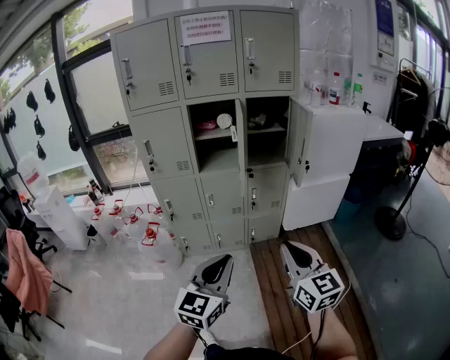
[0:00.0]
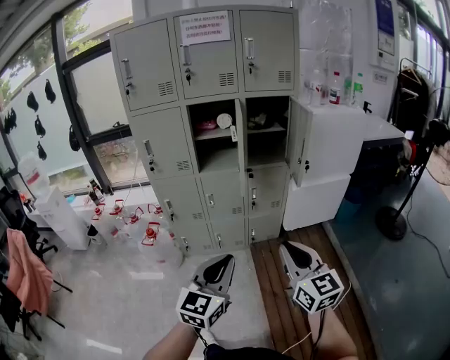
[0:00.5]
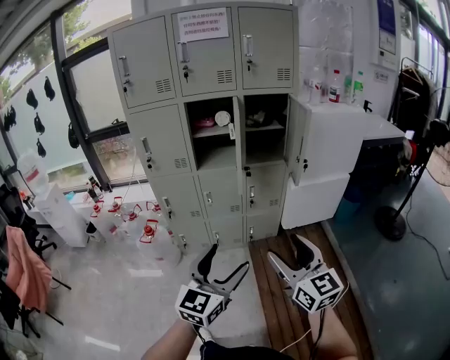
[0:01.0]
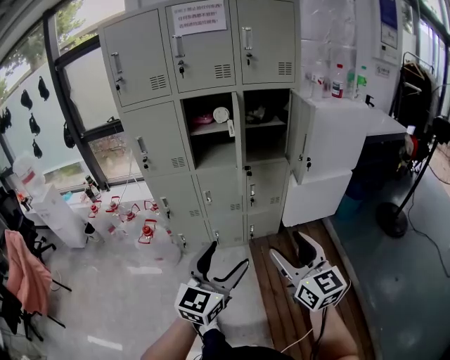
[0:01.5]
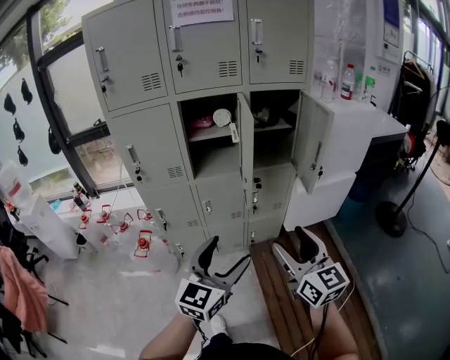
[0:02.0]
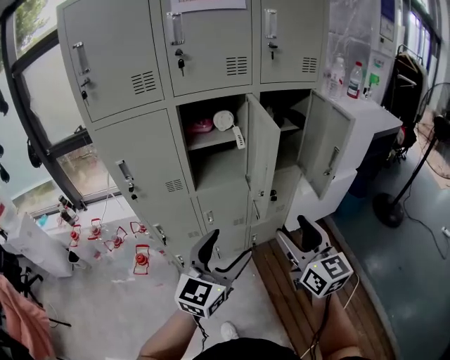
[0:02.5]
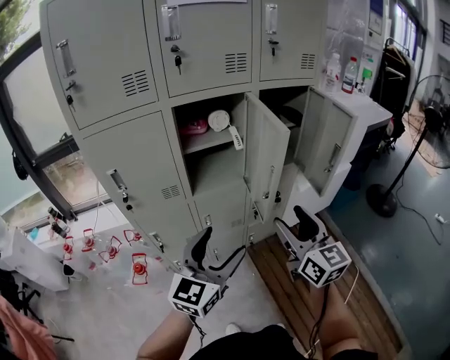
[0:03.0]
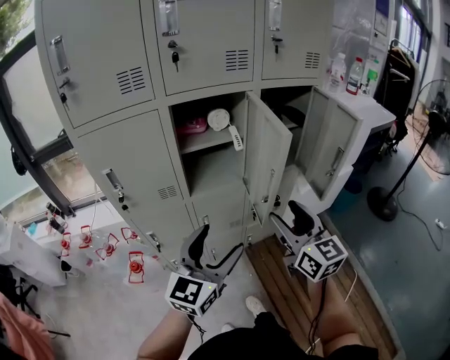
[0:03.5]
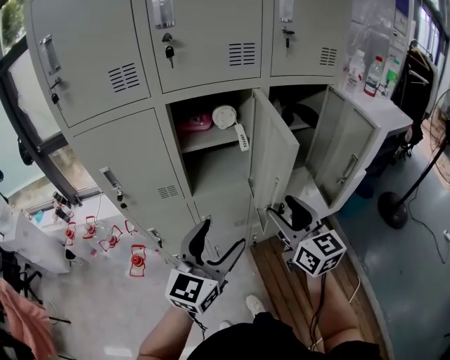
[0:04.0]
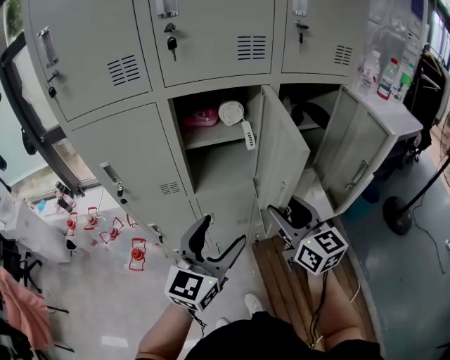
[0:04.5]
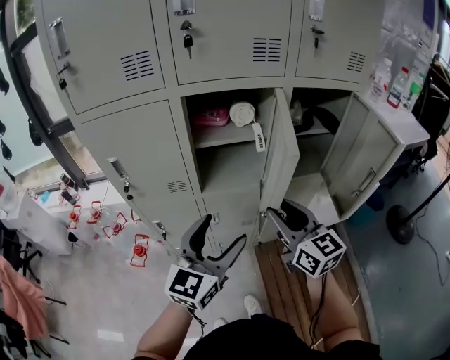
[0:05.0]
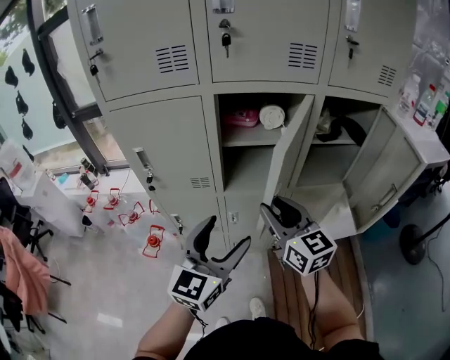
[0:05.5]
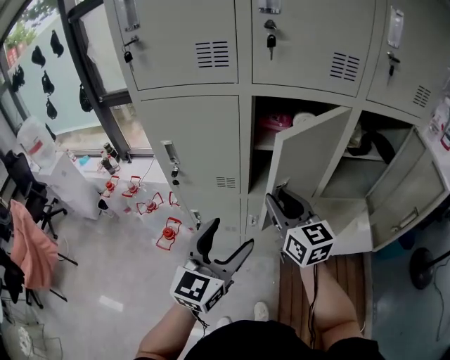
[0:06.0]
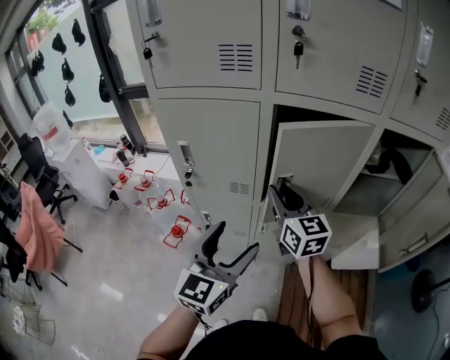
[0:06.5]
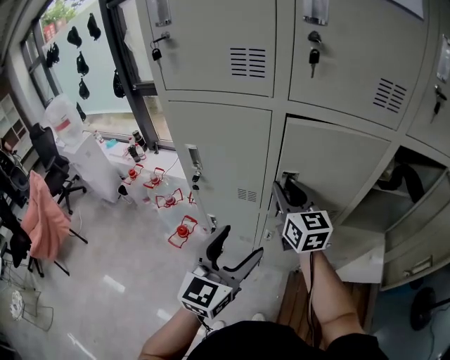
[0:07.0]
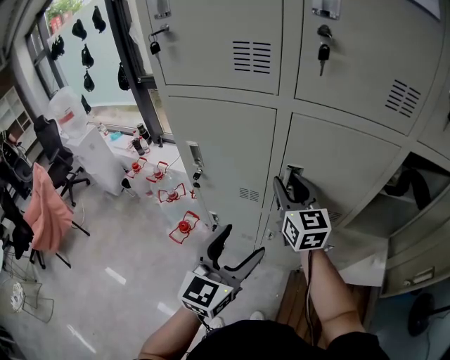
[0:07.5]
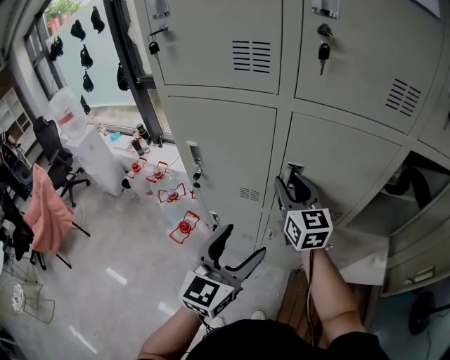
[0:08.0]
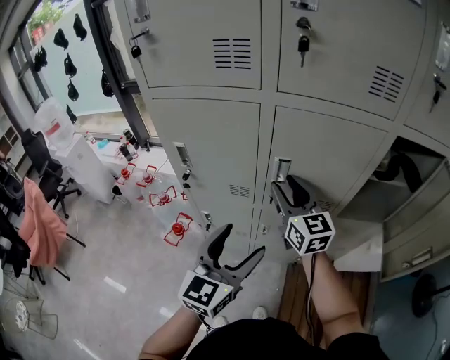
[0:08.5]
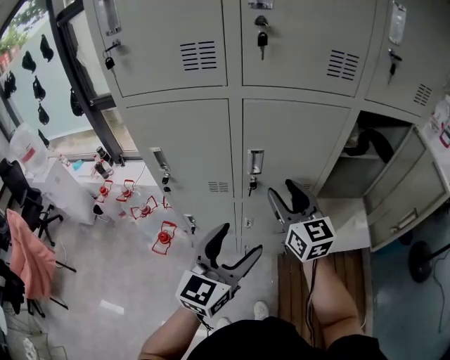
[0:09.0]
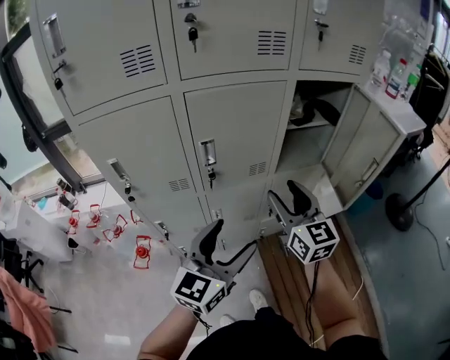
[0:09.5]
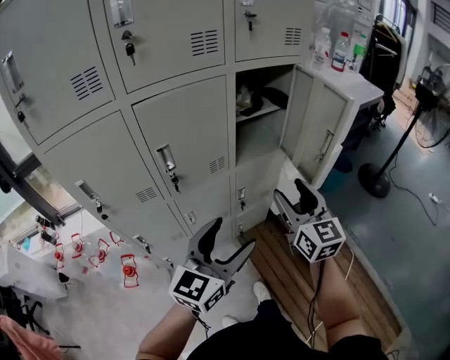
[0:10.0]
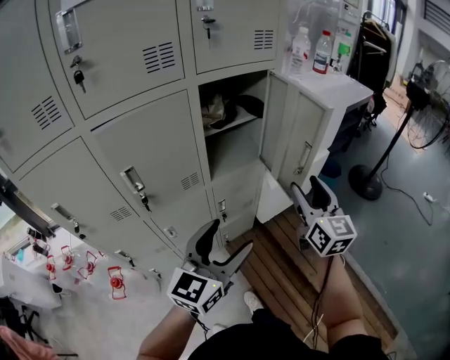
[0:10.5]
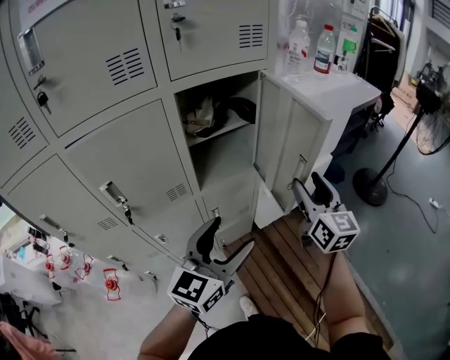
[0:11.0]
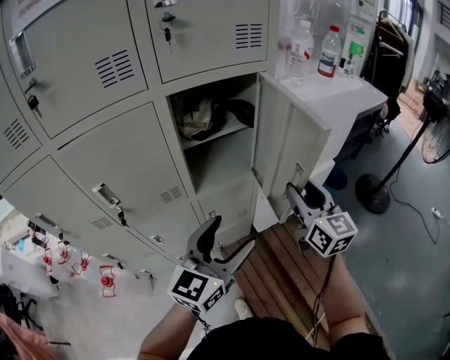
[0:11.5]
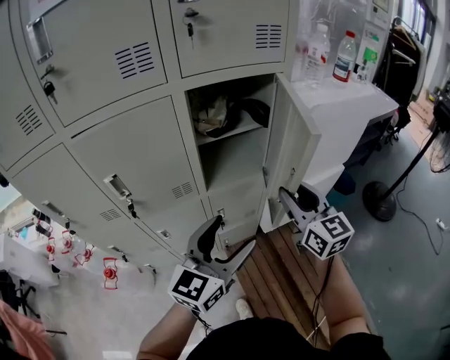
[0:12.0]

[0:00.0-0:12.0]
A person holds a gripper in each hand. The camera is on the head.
0:00.0 to 0:02.0: The two grippers go approximately 15 cm forward. The left gripper opens its fingers; the right gripper opens its fingers.
0:02.0 to 0:04.0: The grippers both shift forward and to the left by some 25 cm.
0:04.0 to 0:06.0: The right gripper shifts some 20 cm to the left and forward, and closes. Meanwhile the left gripper goes some 10 cm to the left.
0:06.0 to 0:08.0: The right gripper is displaced forward by approximately 15 cm. Meanwhile the left gripper goes roughly 5 cm forward.
0:08.0 to 0:10.0: The left gripper ends up about 20 cm from where it was, and swivels approximately 50 degrees; the right gripper shifts by some 40 cm, swivels approximately 40 degrees, and opens its fingers.
0:10.0 to 0:12.0: The grippers both shift forward and to the right by roughly 20 cm. The right gripper closes up.

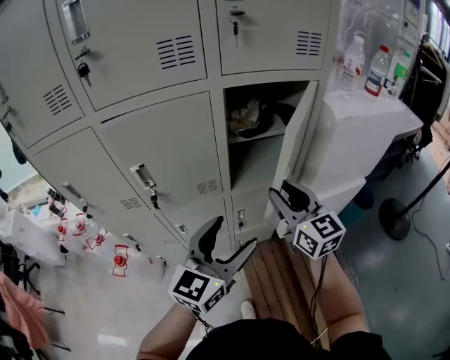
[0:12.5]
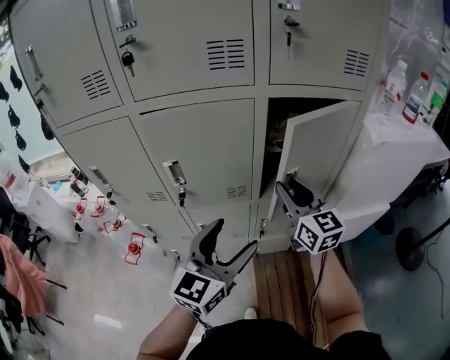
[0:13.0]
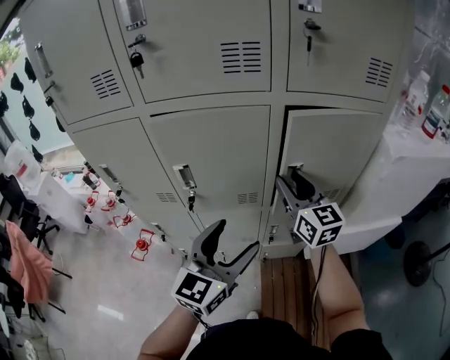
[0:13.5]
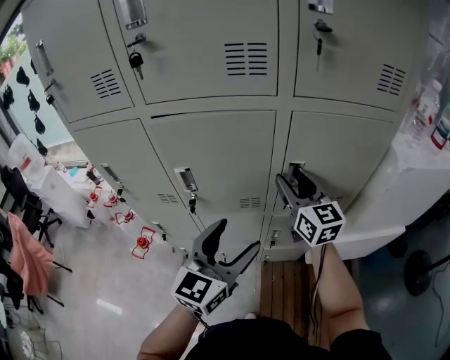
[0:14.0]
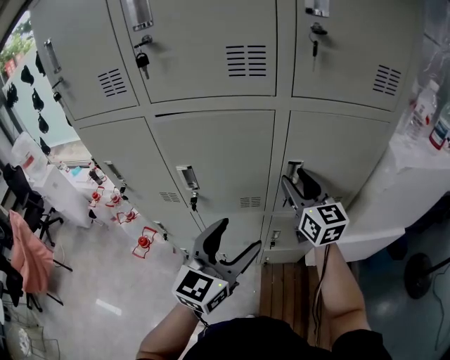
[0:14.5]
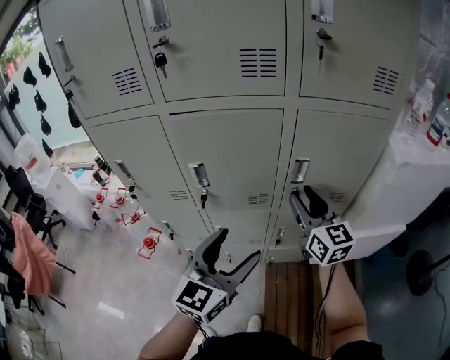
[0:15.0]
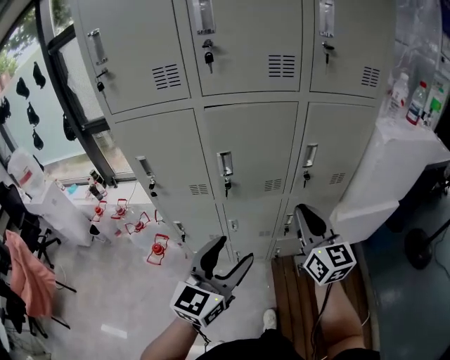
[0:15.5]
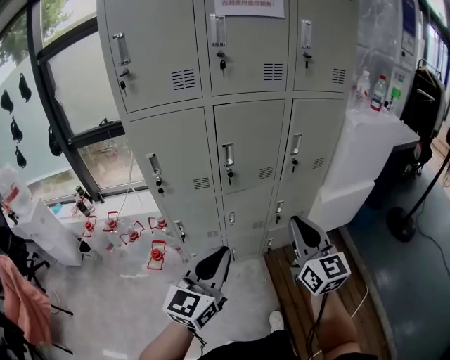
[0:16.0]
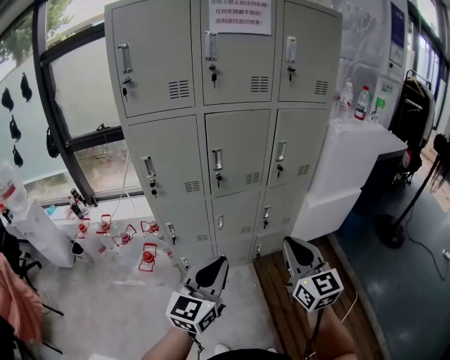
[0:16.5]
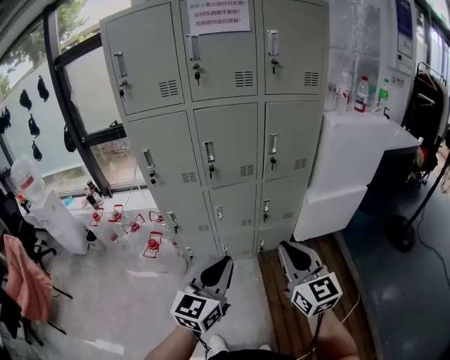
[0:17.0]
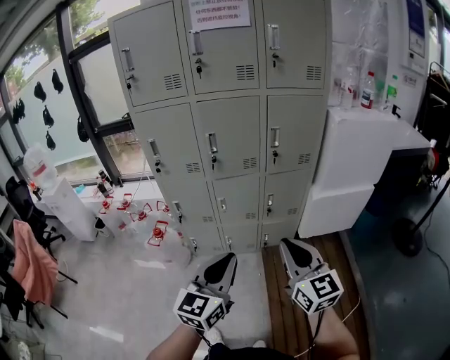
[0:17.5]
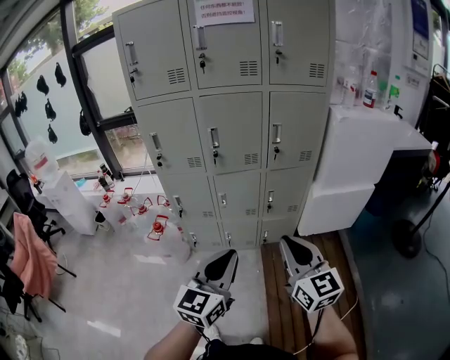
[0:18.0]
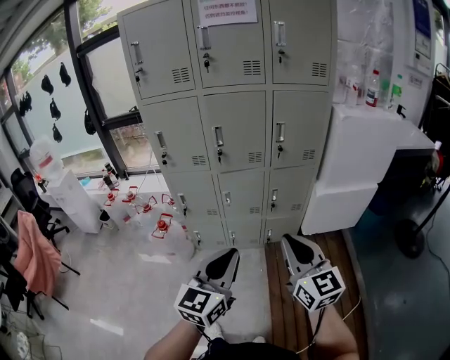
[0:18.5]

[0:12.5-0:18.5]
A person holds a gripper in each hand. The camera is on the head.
0:12.5 to 0:14.5: The left gripper goes some 10 cm to the left and forward; the right gripper goes approximately 15 cm forward and to the left.
0:14.5 to 0:16.5: The right gripper heads backward, covering approximately 50 cm, and closes its fingers; the left gripper heads backward and to the left, covering approximately 35 cm, and closes.
0:16.5 to 0:18.5: The grippers both shift to the right and backward by approximately 15 cm.

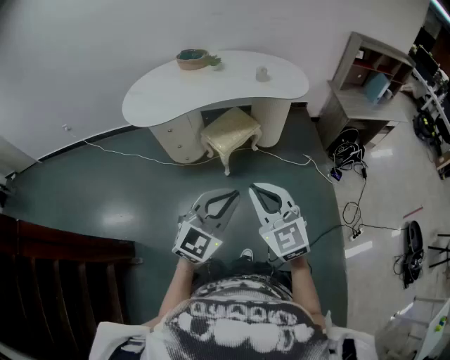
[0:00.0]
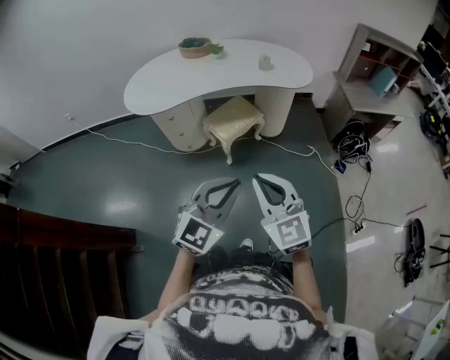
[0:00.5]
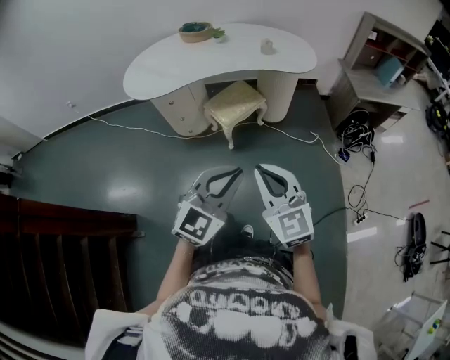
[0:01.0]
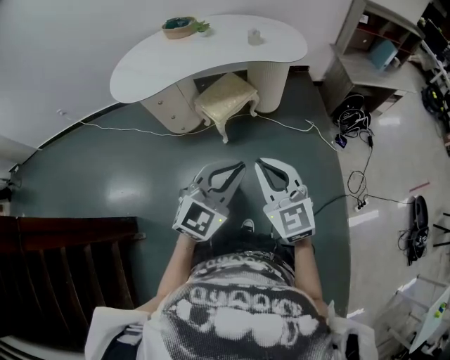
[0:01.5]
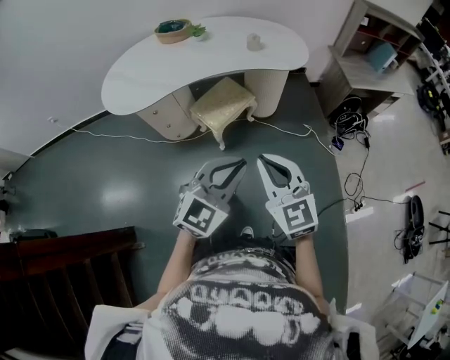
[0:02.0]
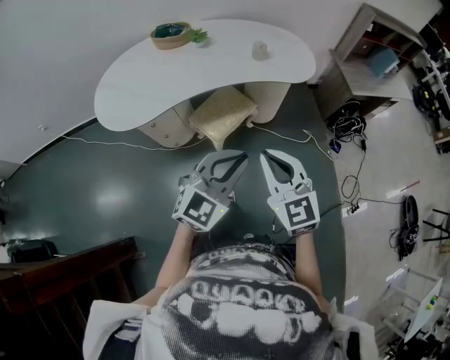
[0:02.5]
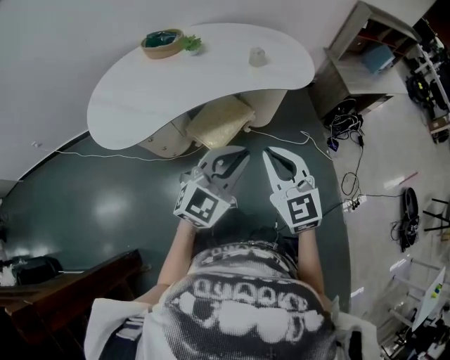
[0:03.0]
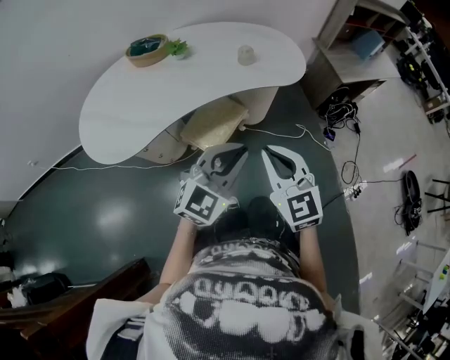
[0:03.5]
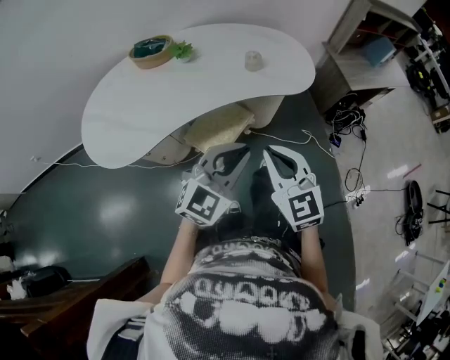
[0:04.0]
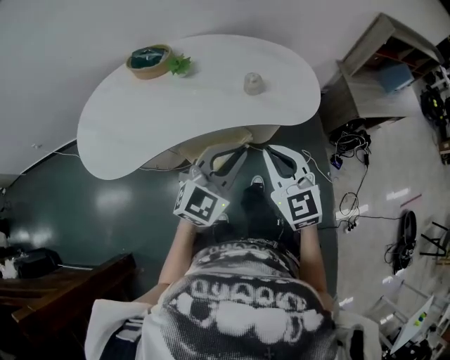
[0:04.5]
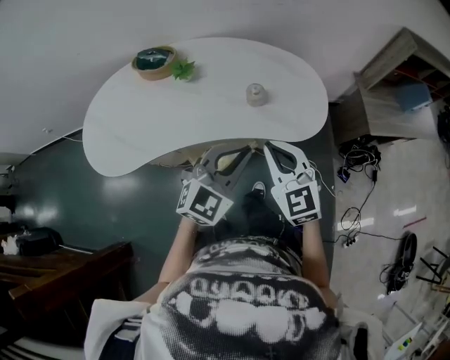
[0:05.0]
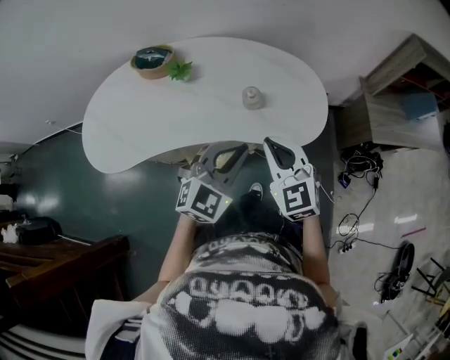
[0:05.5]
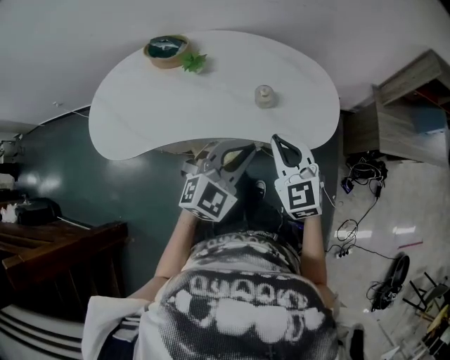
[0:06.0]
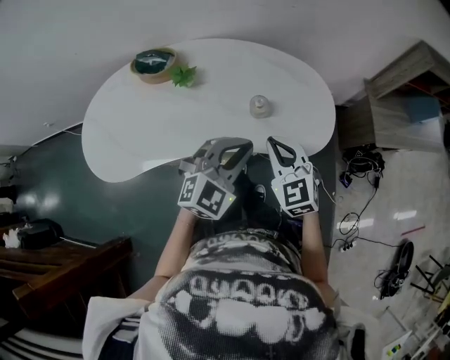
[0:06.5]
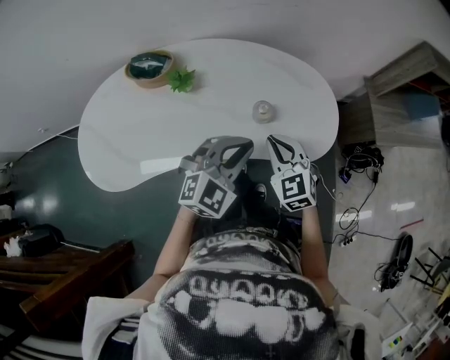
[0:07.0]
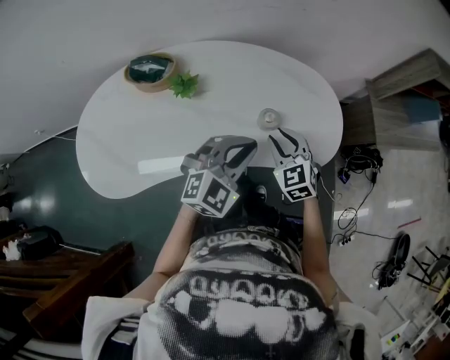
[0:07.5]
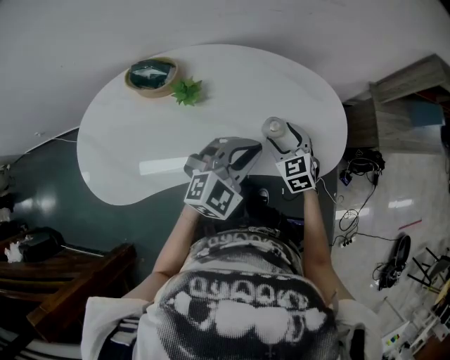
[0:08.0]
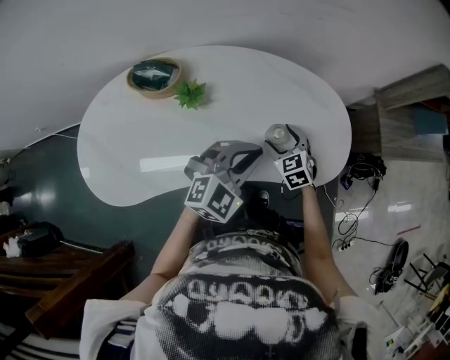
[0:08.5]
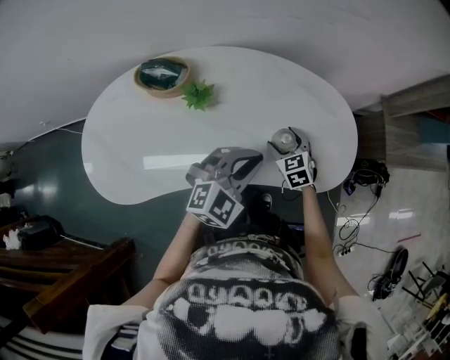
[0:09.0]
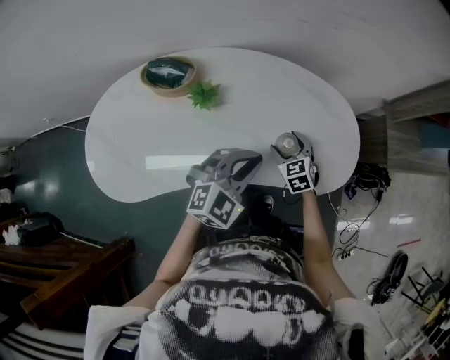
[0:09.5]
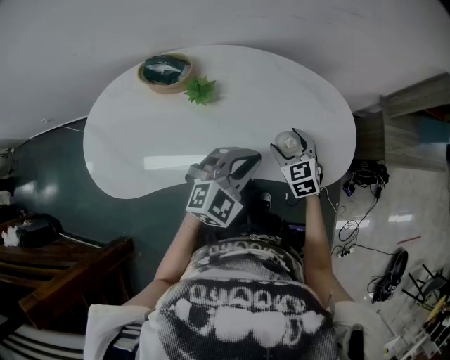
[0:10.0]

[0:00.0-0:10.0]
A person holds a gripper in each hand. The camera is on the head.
0:00.0 to 0:02.0: Both grippers move forward, some 10 cm.
0:02.0 to 0:04.0: Both grippers move forward, roughly 25 cm.
0:04.0 to 0:06.0: The right gripper is displaced forward by roughly 25 cm, while the left gripper is displaced forward and to the right by roughly 25 cm, and rotates some 20 degrees.
0:06.0 to 0:08.0: The right gripper shifts about 20 cm forward and downward, changes its angle by roughly 20 degrees, and opens its fingers, while the left gripper goes approximately 15 cm forward and to the left.
